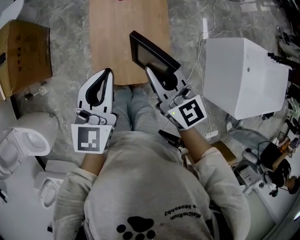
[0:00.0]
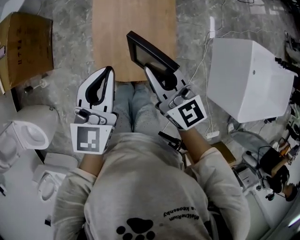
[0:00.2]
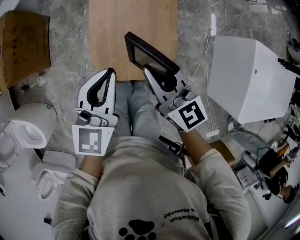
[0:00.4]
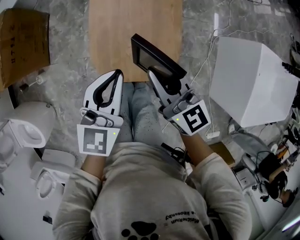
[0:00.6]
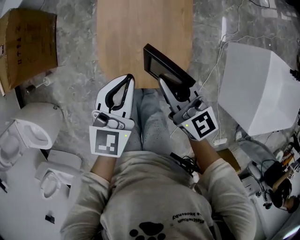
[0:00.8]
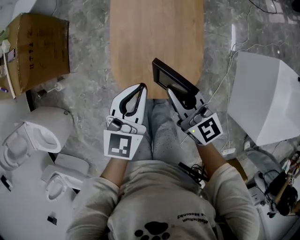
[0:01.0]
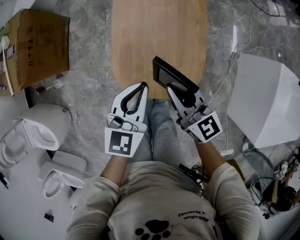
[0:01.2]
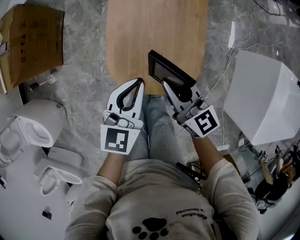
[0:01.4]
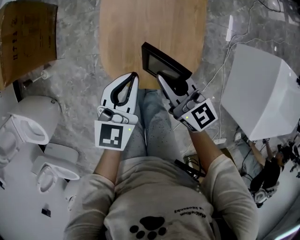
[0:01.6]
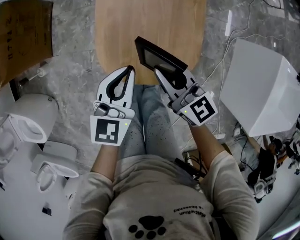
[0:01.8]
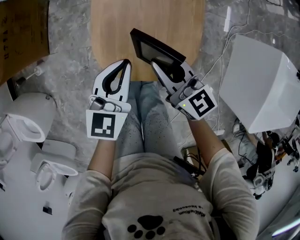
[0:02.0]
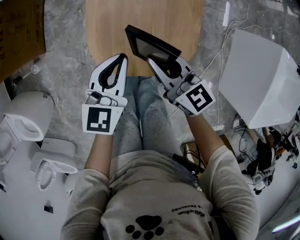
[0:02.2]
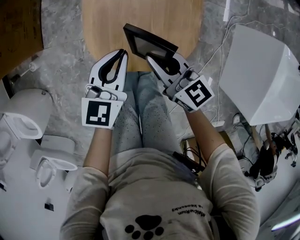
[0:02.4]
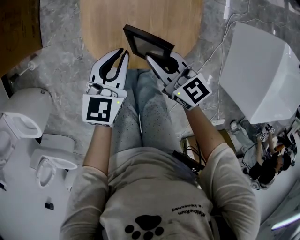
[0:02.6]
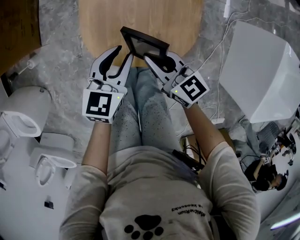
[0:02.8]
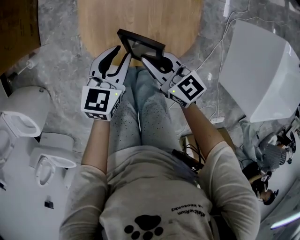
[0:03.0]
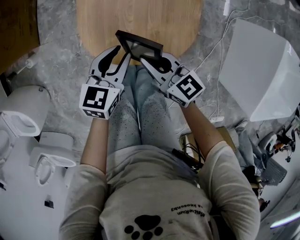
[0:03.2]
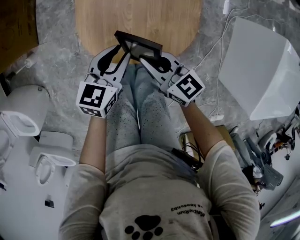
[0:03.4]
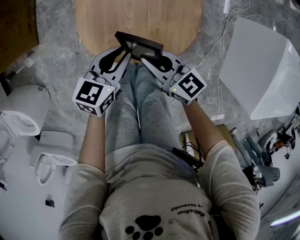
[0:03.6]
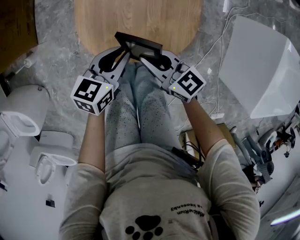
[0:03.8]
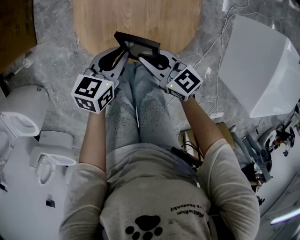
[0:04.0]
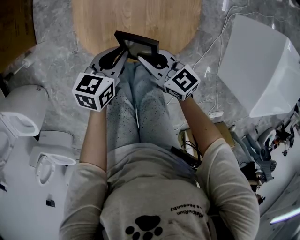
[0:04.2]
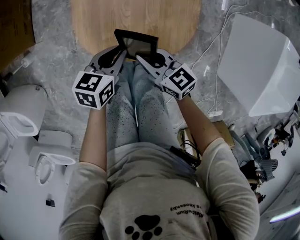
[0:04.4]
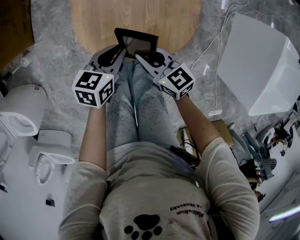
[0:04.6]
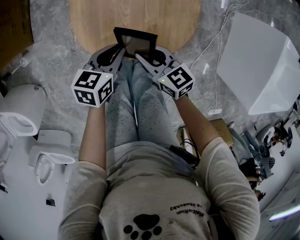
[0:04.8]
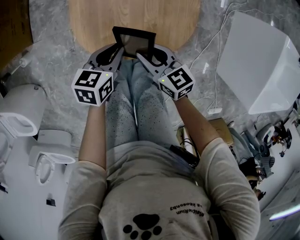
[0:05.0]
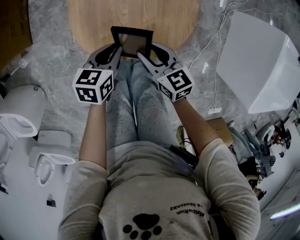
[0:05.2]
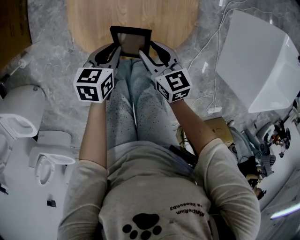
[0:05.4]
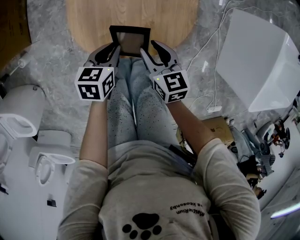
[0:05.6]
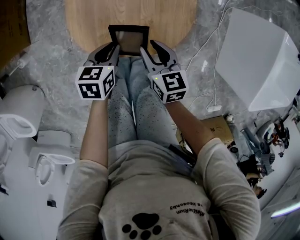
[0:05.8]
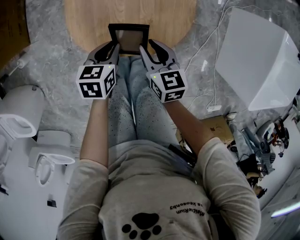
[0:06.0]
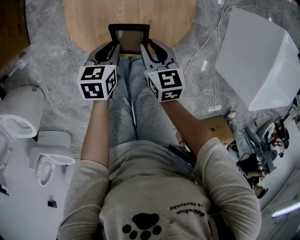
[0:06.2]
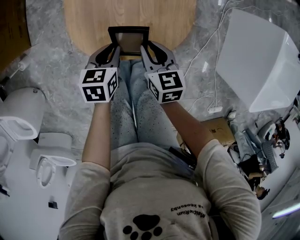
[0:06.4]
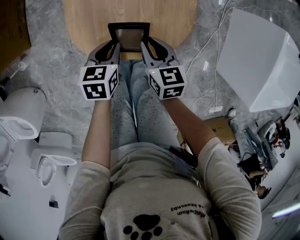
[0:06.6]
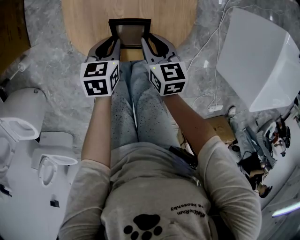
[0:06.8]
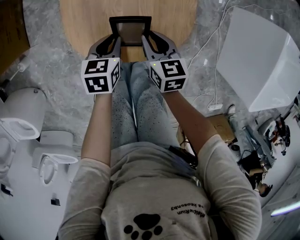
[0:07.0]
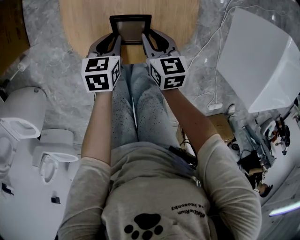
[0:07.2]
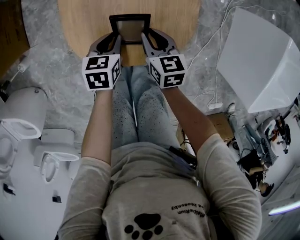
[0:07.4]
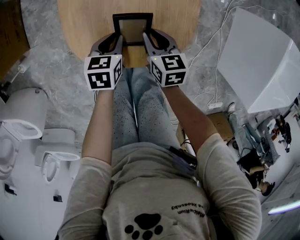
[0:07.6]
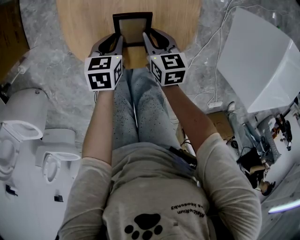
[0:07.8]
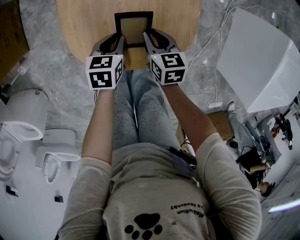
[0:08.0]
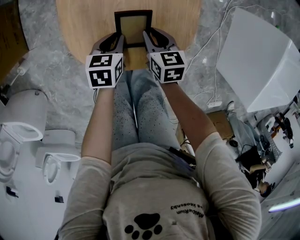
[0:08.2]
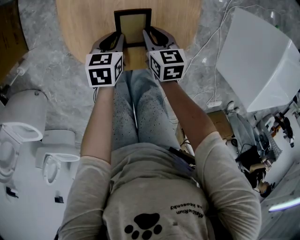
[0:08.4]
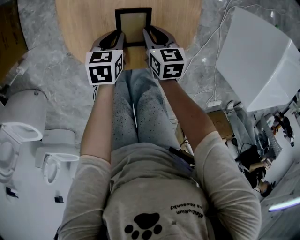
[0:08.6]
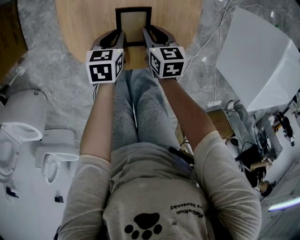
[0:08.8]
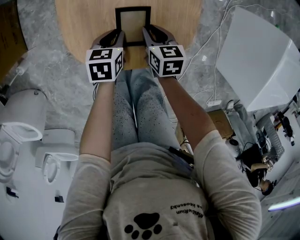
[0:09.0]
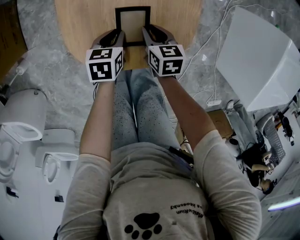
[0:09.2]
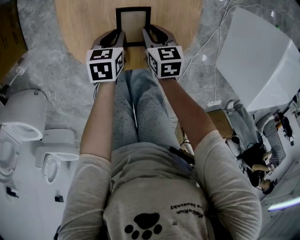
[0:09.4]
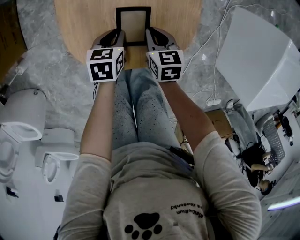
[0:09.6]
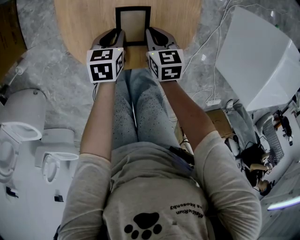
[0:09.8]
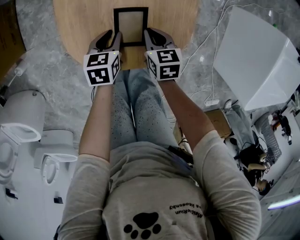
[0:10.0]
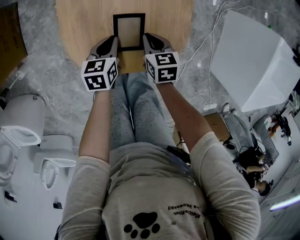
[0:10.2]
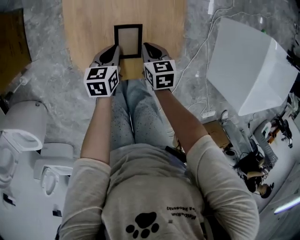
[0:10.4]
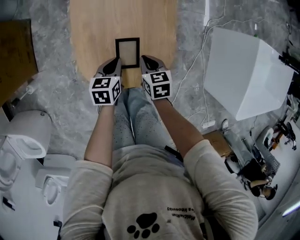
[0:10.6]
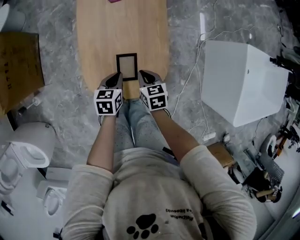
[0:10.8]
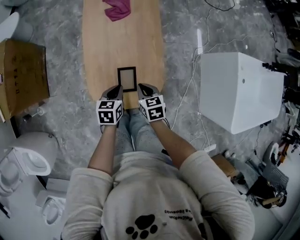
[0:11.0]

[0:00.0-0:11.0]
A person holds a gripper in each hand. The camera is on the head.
0:00.0 to 0:01.6: Both grippers move downward, some 20 cm.
0:01.6 to 0:03.2: The left gripper is displaced downward by about 10 cm, and opens its fingers. The right gripper heads downward and backward, covering about 10 cm.
0:03.2 to 0:04.8: The right gripper heads downward, covering roughly 5 cm. Meanwhile the left gripper changes place by about 5 cm.
0:04.8 to 0:06.2: The right gripper turns by approximately 30 degrees.
0:06.2 to 0:07.8: The right gripper moves forward and downward, about 10 cm, while the left gripper shifts some 5 cm forward.
0:07.8 to 0:09.4: The grippers make only small movements.
0:09.4 to 0:11.0: The grippers both shift upward by roughly 15 cm.

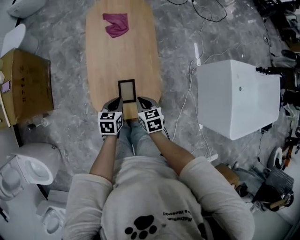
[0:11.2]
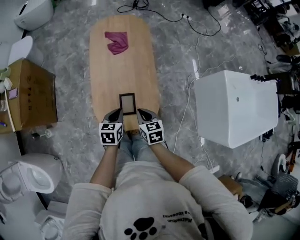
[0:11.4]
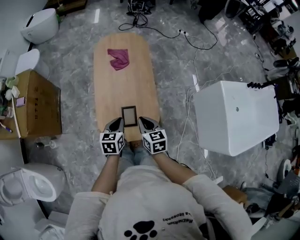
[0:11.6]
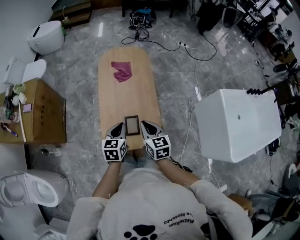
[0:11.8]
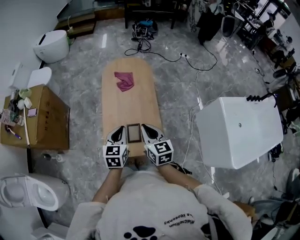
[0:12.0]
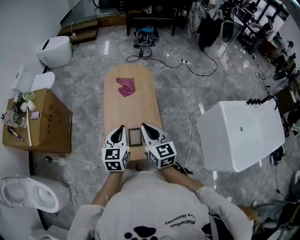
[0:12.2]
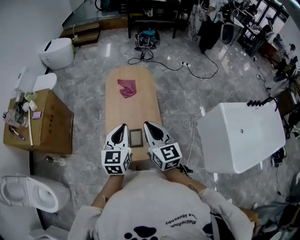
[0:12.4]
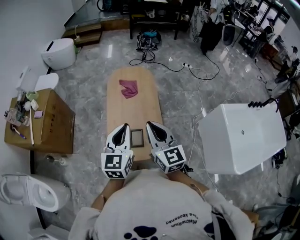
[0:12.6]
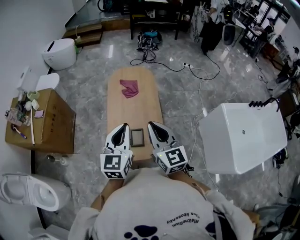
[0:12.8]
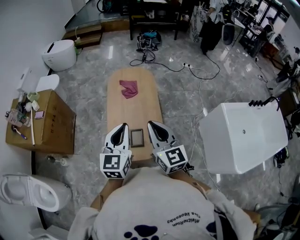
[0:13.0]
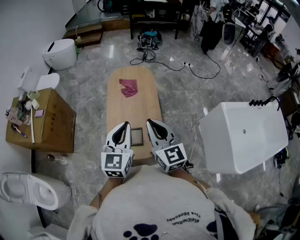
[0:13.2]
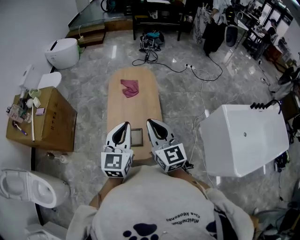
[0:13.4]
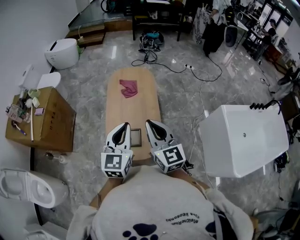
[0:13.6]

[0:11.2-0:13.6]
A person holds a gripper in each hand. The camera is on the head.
0:11.2 to 0:12.4: Both grippers move upward, about 30 cm. The right gripper tips its fingers upward by some 40 degrees. The left gripper angles its fingers upward, by roughly 30 degrees.
0:12.4 to 0:13.6: The left gripper moves some 5 cm.

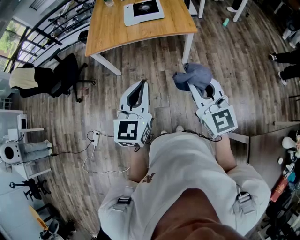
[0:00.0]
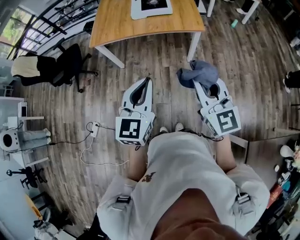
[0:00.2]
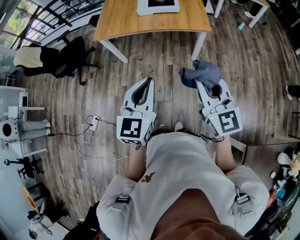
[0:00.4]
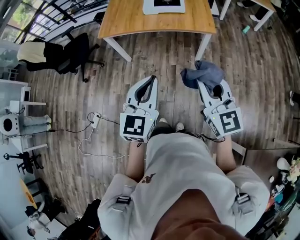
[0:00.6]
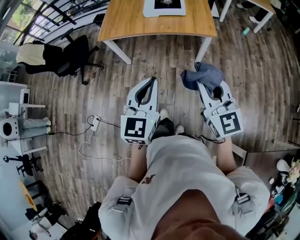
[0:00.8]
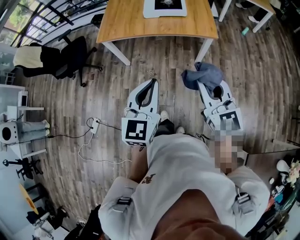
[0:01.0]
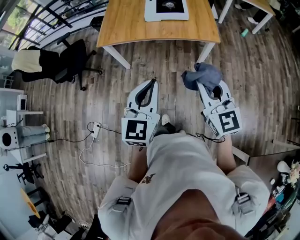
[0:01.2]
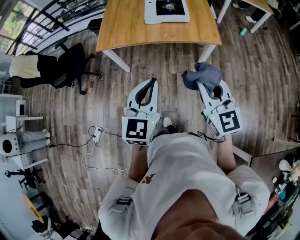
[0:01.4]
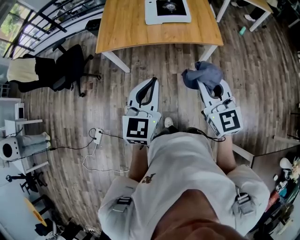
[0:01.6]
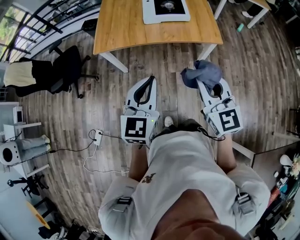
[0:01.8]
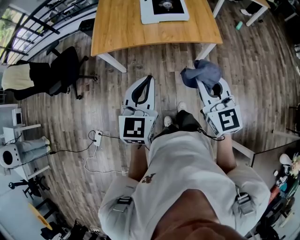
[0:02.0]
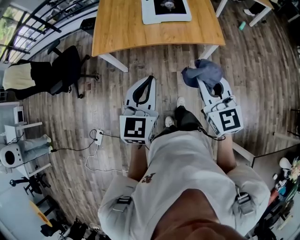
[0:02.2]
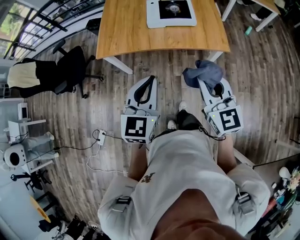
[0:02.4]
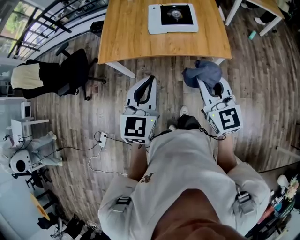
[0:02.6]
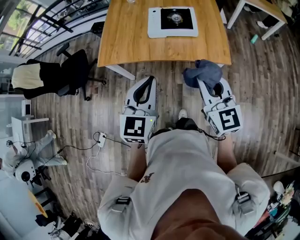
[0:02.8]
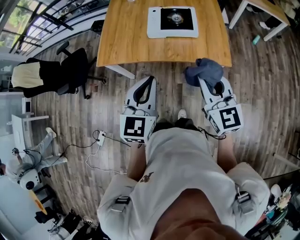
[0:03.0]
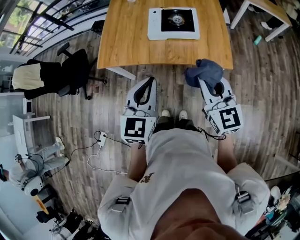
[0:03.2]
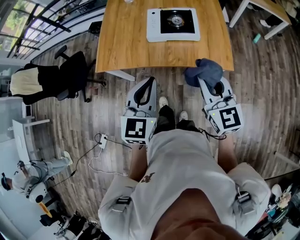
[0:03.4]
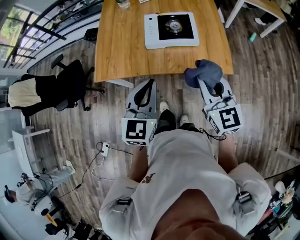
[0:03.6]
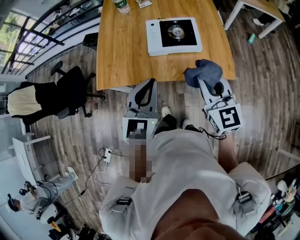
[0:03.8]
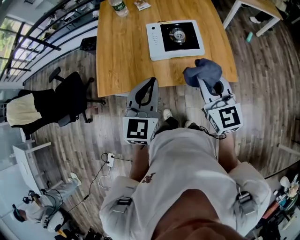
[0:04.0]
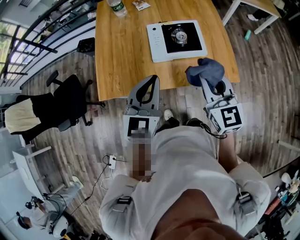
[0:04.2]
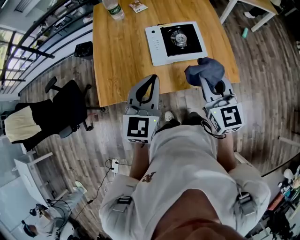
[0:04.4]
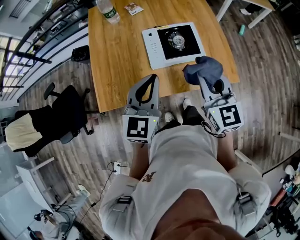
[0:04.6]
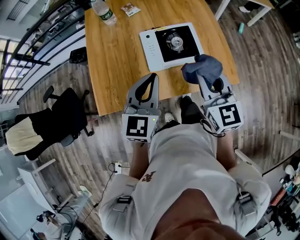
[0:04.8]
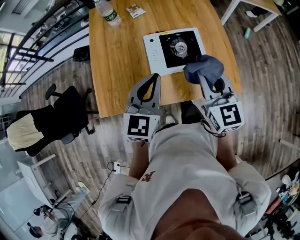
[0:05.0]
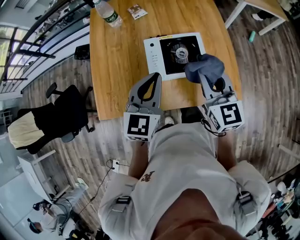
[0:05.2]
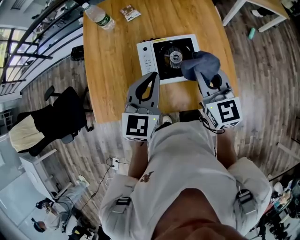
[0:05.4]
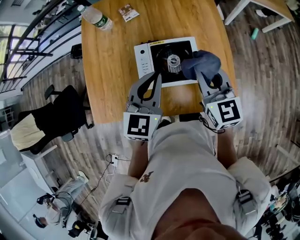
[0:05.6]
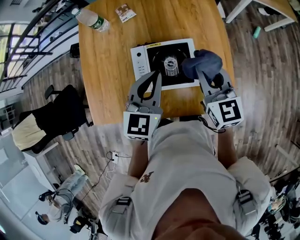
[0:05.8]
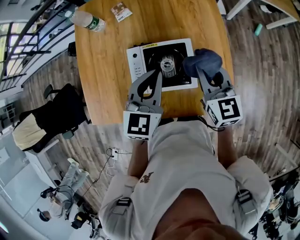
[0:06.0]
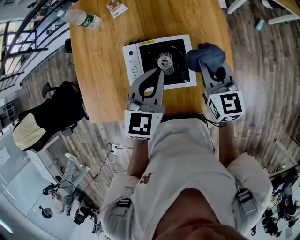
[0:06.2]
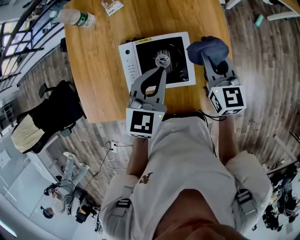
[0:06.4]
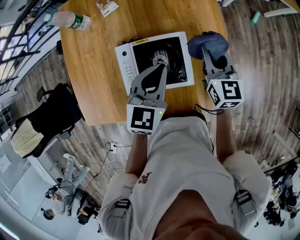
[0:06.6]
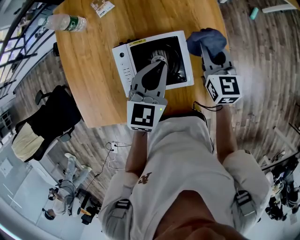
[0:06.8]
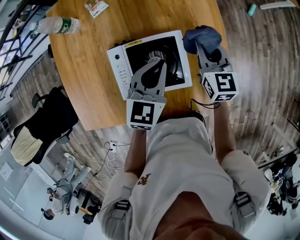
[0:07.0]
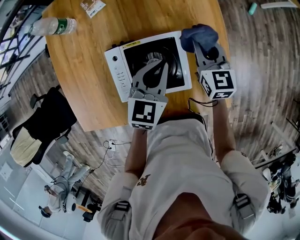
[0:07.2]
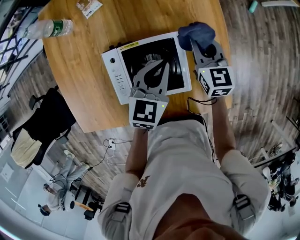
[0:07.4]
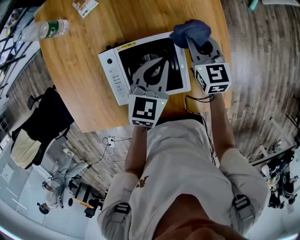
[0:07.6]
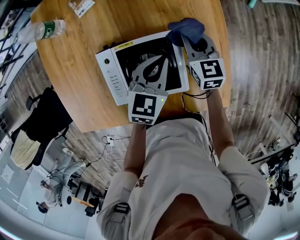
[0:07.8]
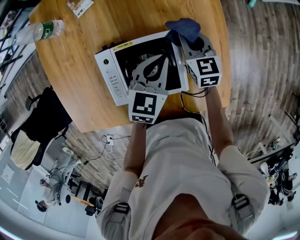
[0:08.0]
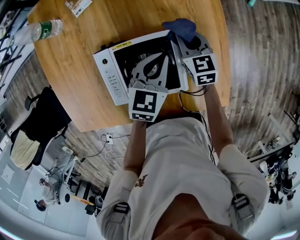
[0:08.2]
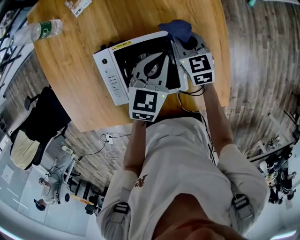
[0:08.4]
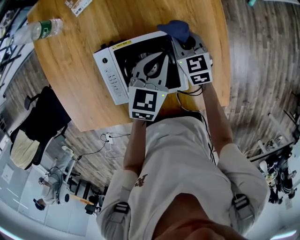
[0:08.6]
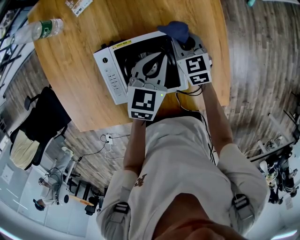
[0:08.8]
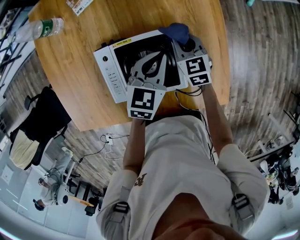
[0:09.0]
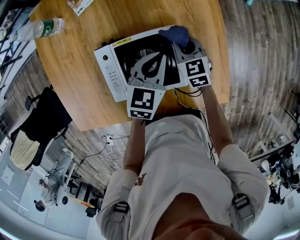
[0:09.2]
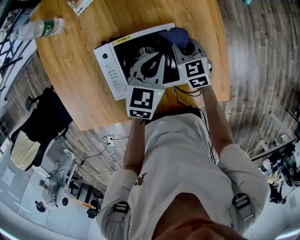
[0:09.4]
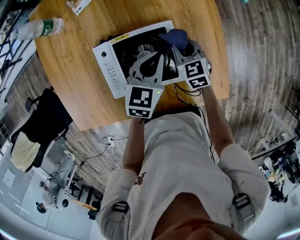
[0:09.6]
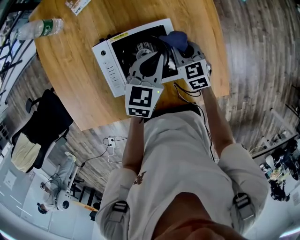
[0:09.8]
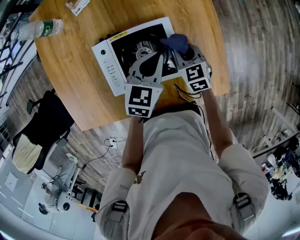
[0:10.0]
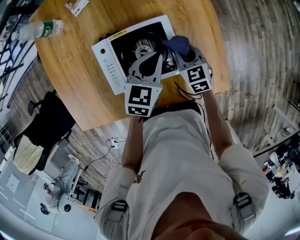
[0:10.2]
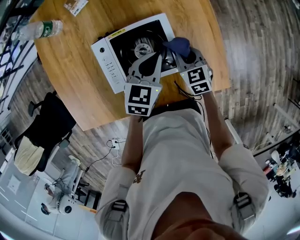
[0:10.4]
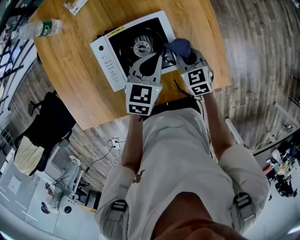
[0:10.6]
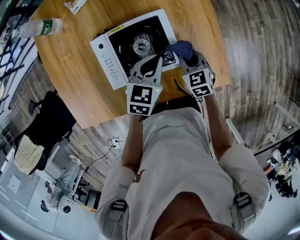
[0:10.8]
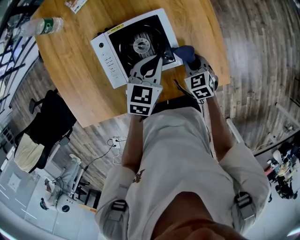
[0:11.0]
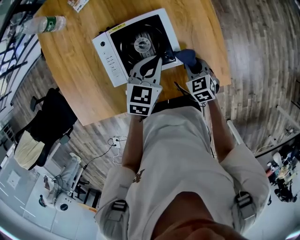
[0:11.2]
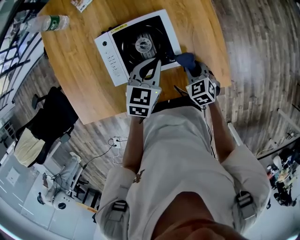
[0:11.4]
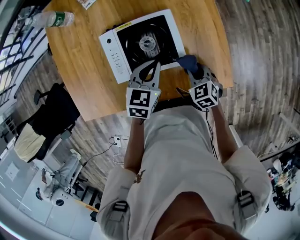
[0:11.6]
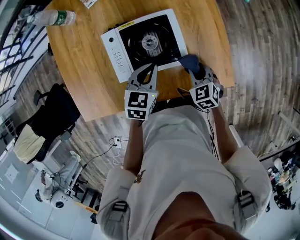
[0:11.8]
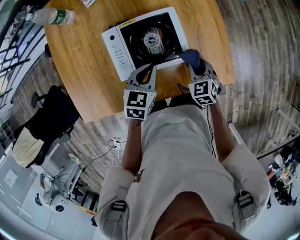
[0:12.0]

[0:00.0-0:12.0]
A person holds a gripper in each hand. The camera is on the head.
0:00.0 to 0:01.6: Both grippers travel together forward and to the left, roughly 20 cm.
0:01.6 to 0:03.0: The grippers both shift forward by about 20 cm.
0:03.0 to 0:04.4: The right gripper goes some 20 cm forward and to the left. The left gripper moves forward, about 25 cm.
0:04.4 to 0:06.0: The grippers both shift forward and to the right by roughly 30 cm.
0:06.0 to 0:07.6: The grippers both shift downward and forward by about 20 cm.
0:07.6 to 0:09.0: The right gripper is displaced downward by about 5 cm.
0:09.0 to 0:10.4: The right gripper travels backward by approximately 10 cm; the left gripper travels backward by approximately 5 cm.
0:10.4 to 0:12.0: The right gripper is displaced backward by roughly 10 cm. Meanwhile the left gripper moves backward and to the left, some 10 cm.
